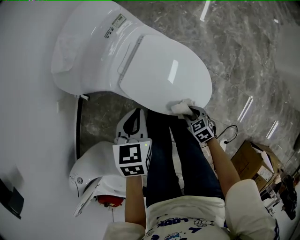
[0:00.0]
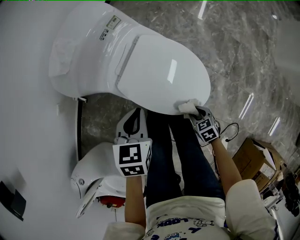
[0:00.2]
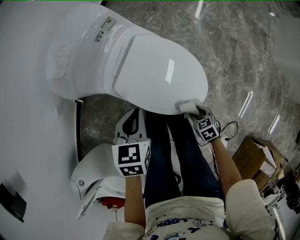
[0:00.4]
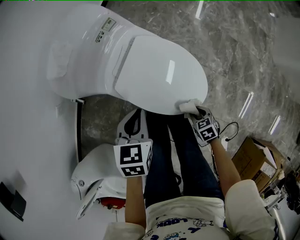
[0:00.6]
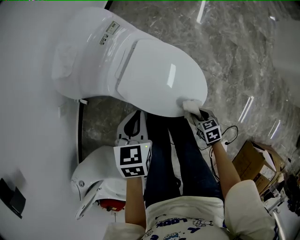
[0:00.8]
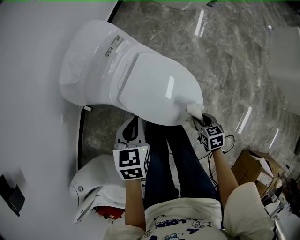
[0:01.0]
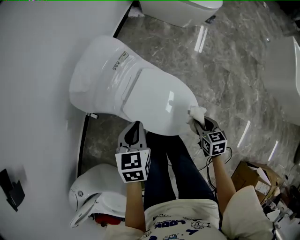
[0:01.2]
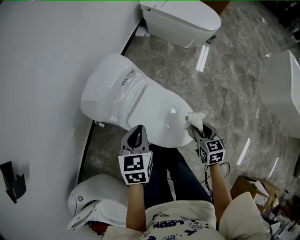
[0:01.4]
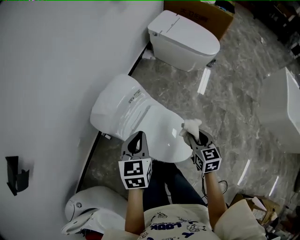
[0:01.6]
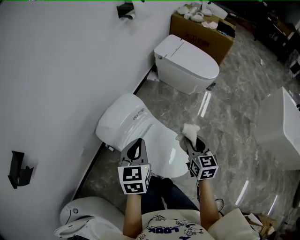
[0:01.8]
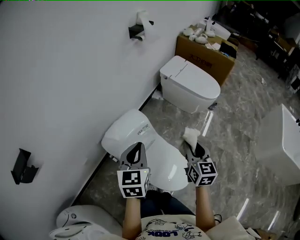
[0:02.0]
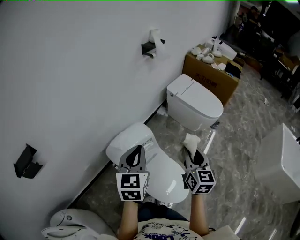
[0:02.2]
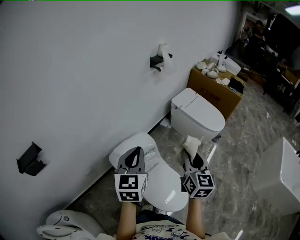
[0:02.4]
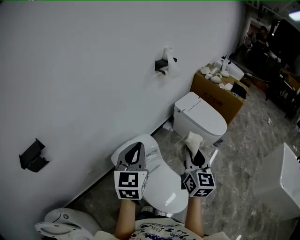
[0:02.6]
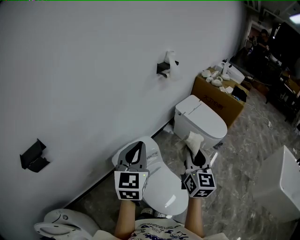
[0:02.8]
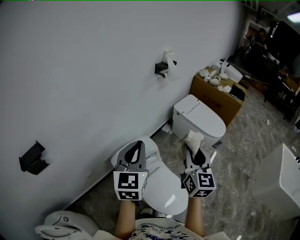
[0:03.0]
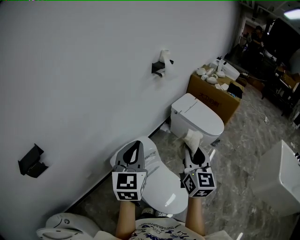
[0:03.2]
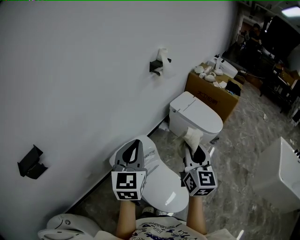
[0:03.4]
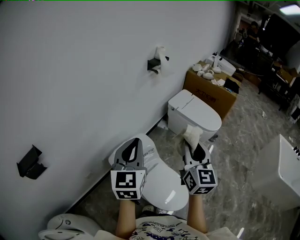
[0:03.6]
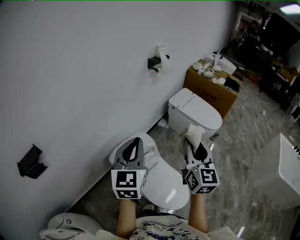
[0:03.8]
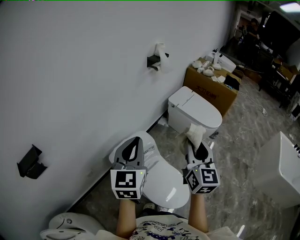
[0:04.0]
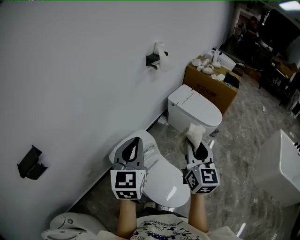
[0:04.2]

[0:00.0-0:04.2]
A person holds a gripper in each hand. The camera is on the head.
0:00.0 to 0:01.4: The left gripper travels upward by about 15 cm, while the right gripper travels upward by roughly 25 cm, and changes its angle by approximately 30 degrees.
0:01.4 to 0:02.8: Both grippers travel together upward, roughly 40 cm. The left gripper angles its fingers upward, by roughly 40 degrees. The right gripper tips its fingers upward by about 50 degrees.
0:02.8 to 0:04.2: The grippers make only small movements.

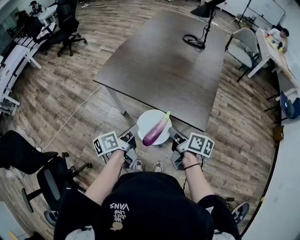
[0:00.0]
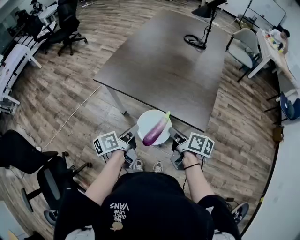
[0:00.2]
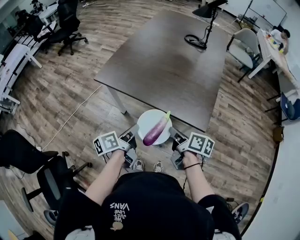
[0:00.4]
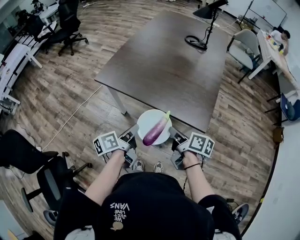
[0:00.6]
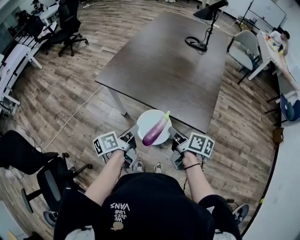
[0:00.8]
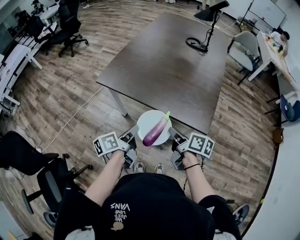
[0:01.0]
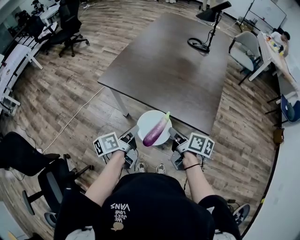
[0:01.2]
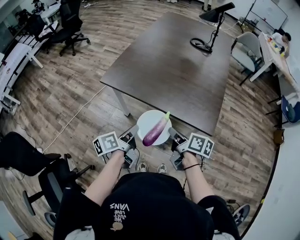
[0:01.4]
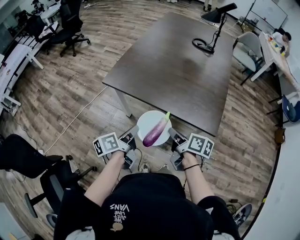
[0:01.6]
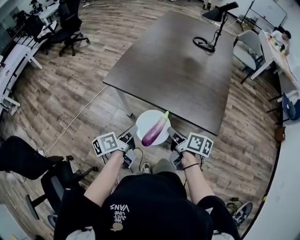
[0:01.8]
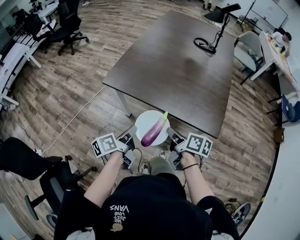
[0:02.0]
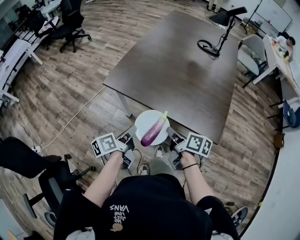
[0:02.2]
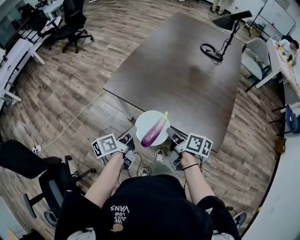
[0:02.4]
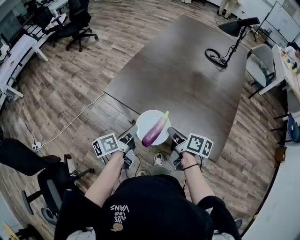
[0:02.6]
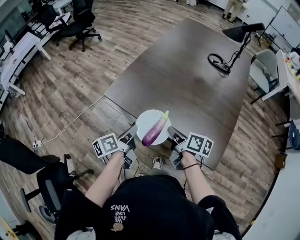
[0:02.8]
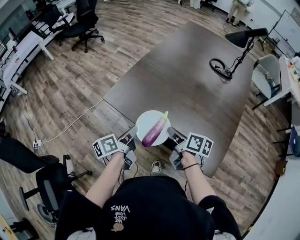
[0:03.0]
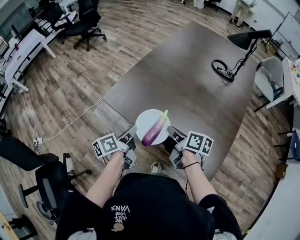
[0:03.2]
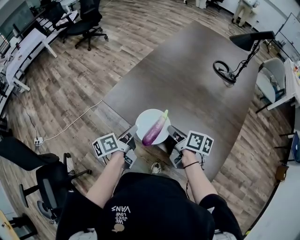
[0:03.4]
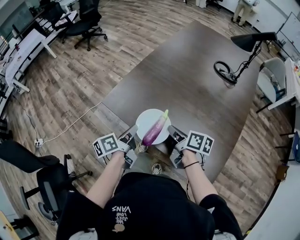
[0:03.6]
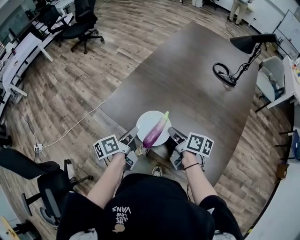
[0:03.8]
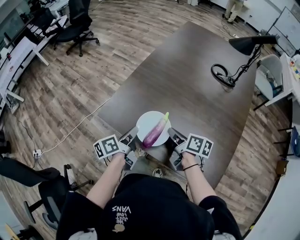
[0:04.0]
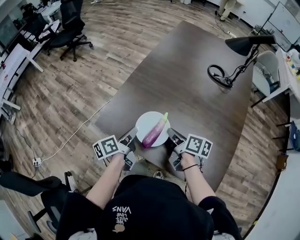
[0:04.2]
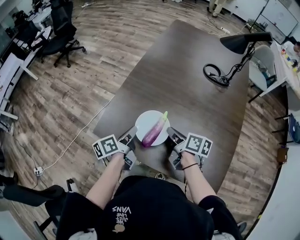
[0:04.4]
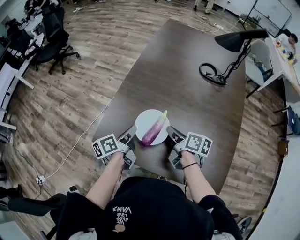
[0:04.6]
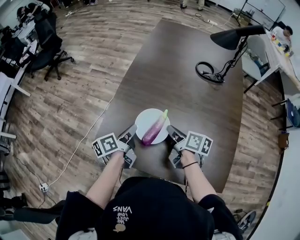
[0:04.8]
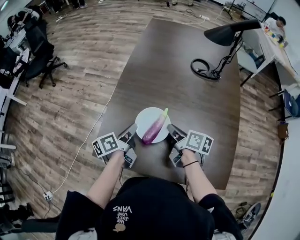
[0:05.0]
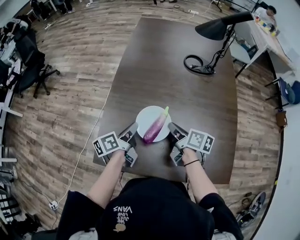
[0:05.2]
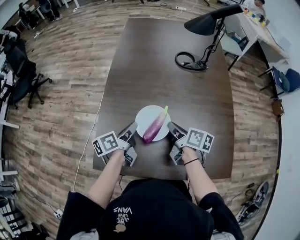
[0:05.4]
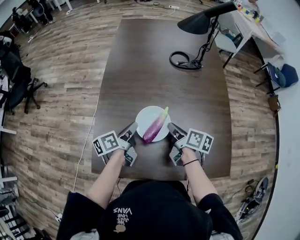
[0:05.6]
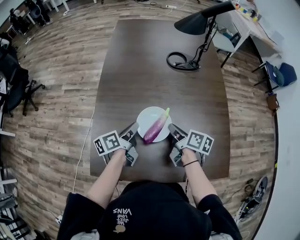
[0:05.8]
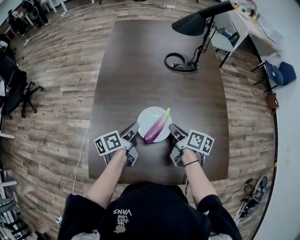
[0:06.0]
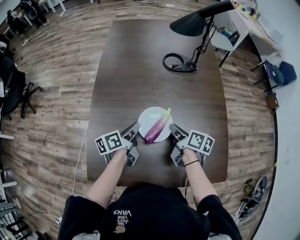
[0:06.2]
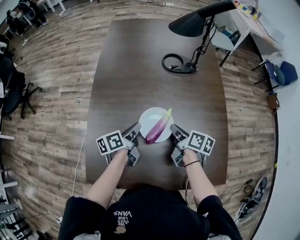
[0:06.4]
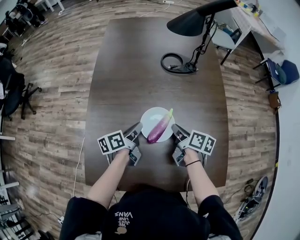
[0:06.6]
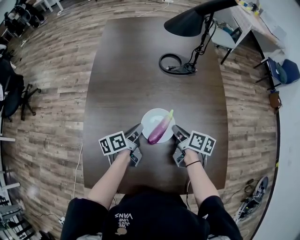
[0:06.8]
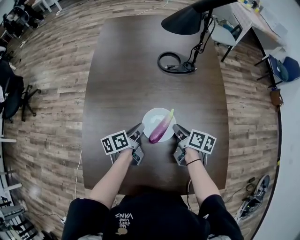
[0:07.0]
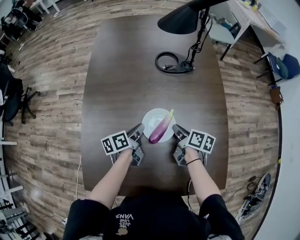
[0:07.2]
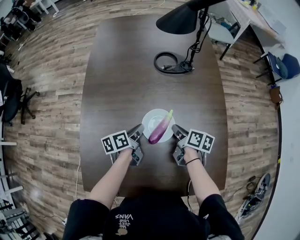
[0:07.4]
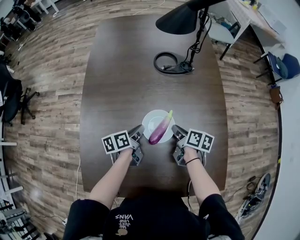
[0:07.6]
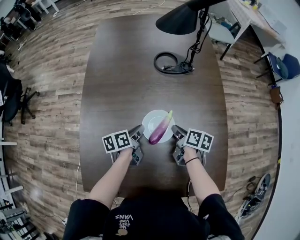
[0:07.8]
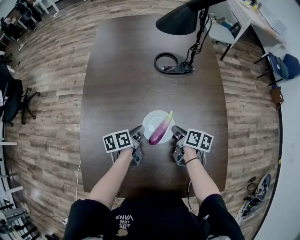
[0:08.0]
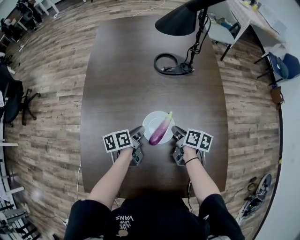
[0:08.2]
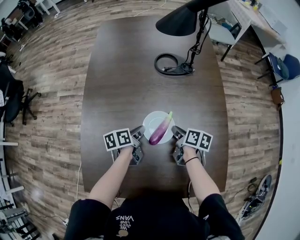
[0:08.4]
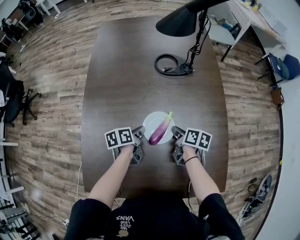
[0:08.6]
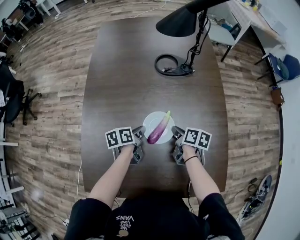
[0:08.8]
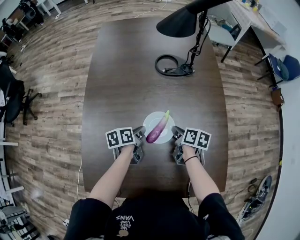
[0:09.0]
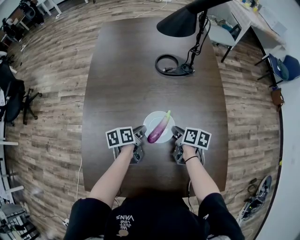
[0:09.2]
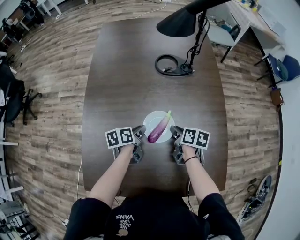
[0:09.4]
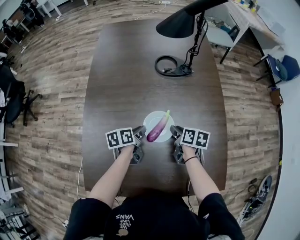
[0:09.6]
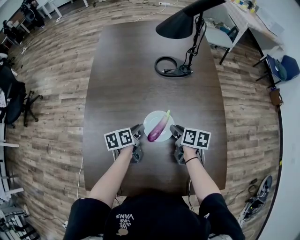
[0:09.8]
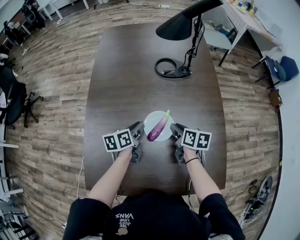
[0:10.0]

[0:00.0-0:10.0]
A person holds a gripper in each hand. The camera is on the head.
0:00.0 to 0:01.4: Both grippers move to the left, roughly 5 cm.
0:01.4 to 0:02.8: The grippers both shift forward by some 15 cm.
0:02.8 to 0:04.2: The grippers both shift forward by roughly 15 cm.
0:04.2 to 0:05.8: The left gripper shifts by about 20 cm, and changes its angle by roughly 30 degrees. The right gripper changes place by about 15 cm, and changes its angle by some 30 degrees.
0:05.8 to 0:07.2: The two grippers go roughly 15 cm forward, to the right and downward.
0:07.2 to 0:08.6: There are only small adjustments of the grippers.
0:08.6 to 0:10.0: The two grippers go approximately 5 cm upward.

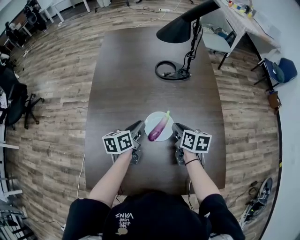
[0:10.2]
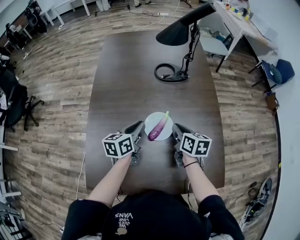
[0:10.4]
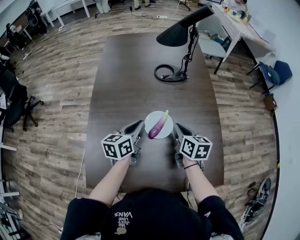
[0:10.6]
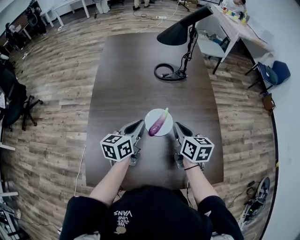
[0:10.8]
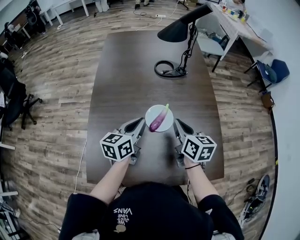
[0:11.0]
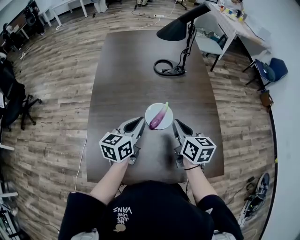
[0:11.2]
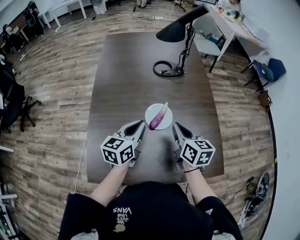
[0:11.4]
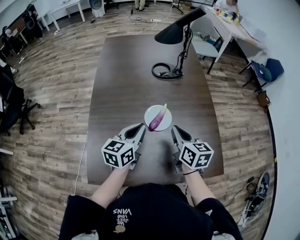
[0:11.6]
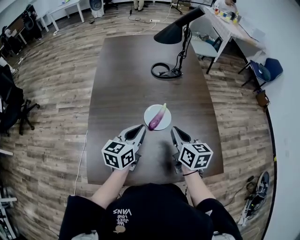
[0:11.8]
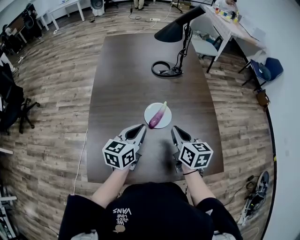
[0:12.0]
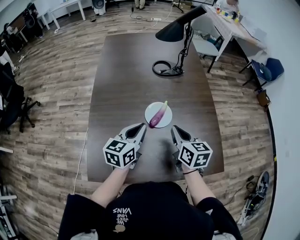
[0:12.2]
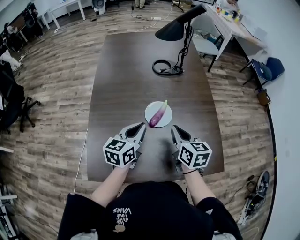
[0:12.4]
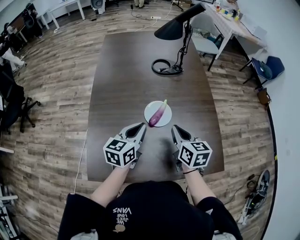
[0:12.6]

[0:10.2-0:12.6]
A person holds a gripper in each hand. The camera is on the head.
0:10.2 to 0:11.4: The two grippers go about 15 cm upward and backward. The left gripper rotates some 30 degrees.
0:11.4 to 0:12.6: The grippers make only small movements.

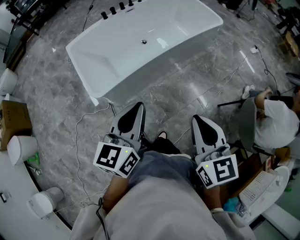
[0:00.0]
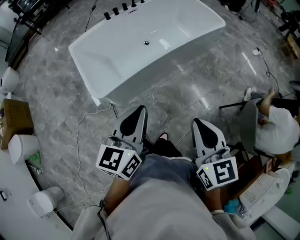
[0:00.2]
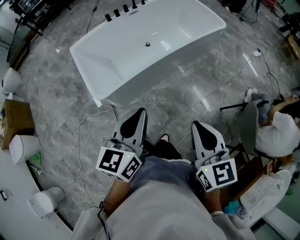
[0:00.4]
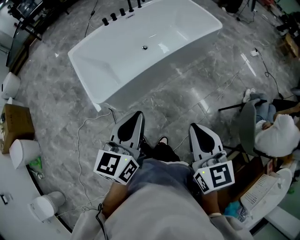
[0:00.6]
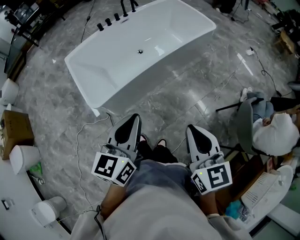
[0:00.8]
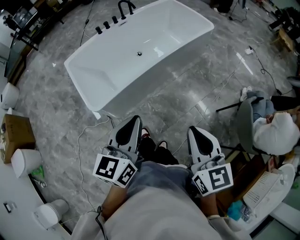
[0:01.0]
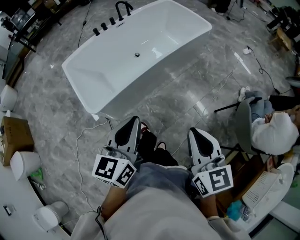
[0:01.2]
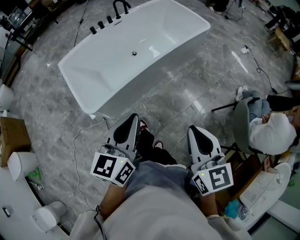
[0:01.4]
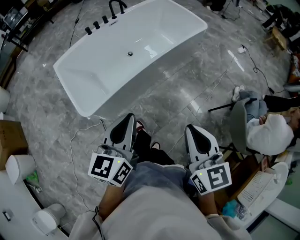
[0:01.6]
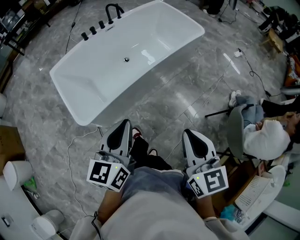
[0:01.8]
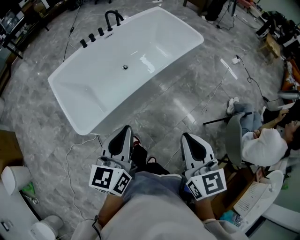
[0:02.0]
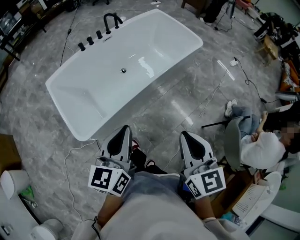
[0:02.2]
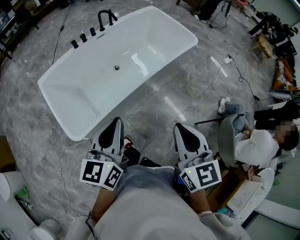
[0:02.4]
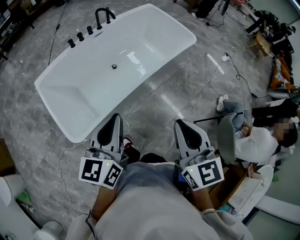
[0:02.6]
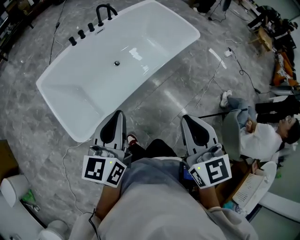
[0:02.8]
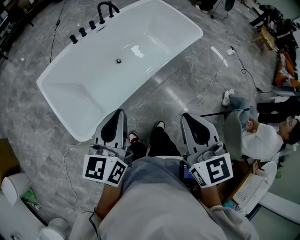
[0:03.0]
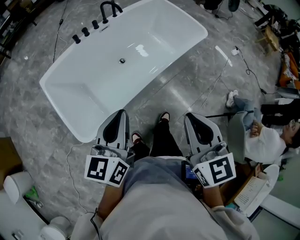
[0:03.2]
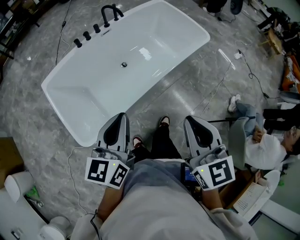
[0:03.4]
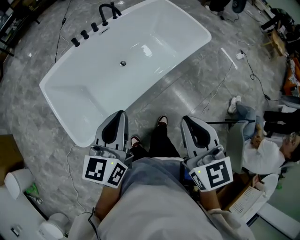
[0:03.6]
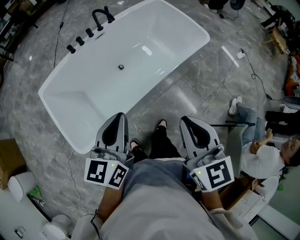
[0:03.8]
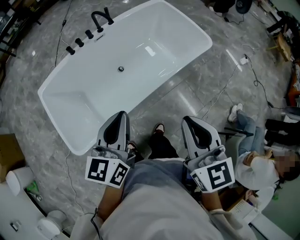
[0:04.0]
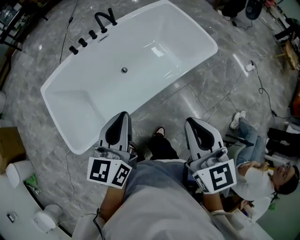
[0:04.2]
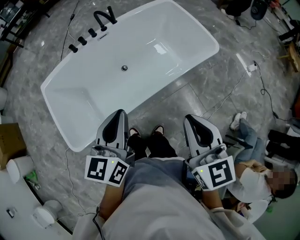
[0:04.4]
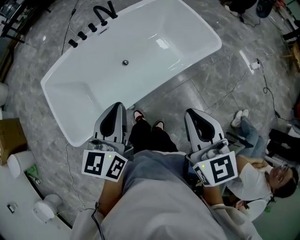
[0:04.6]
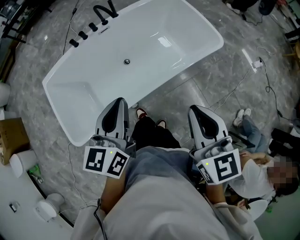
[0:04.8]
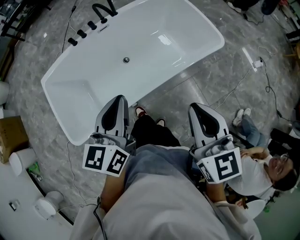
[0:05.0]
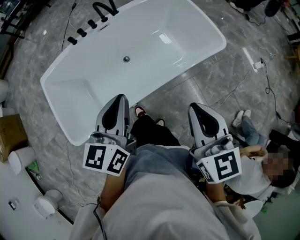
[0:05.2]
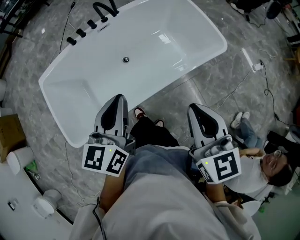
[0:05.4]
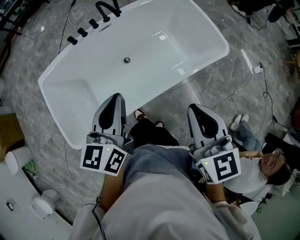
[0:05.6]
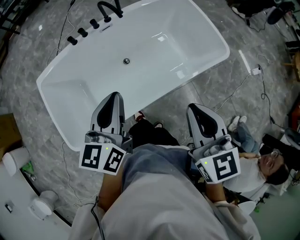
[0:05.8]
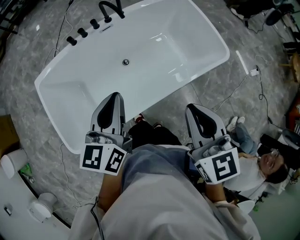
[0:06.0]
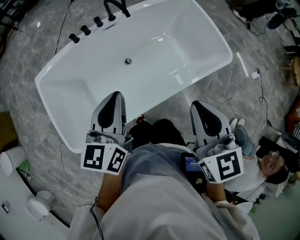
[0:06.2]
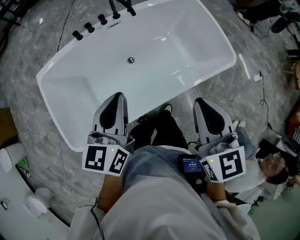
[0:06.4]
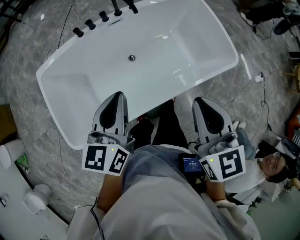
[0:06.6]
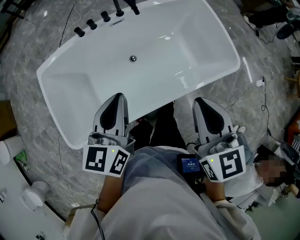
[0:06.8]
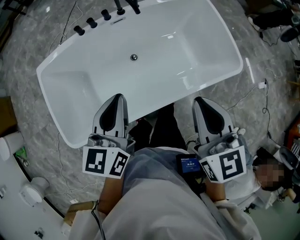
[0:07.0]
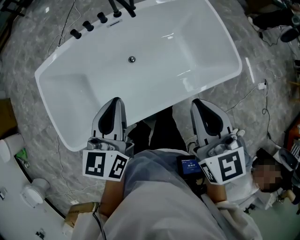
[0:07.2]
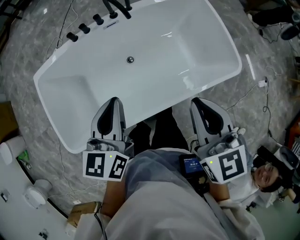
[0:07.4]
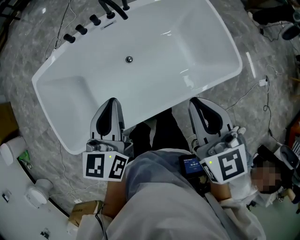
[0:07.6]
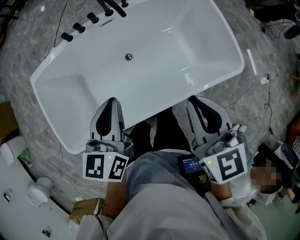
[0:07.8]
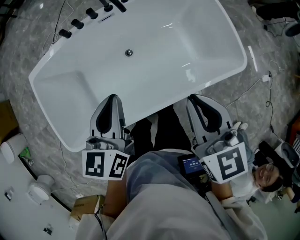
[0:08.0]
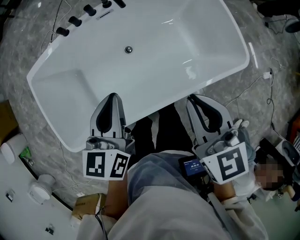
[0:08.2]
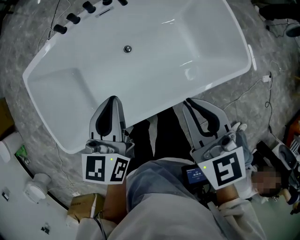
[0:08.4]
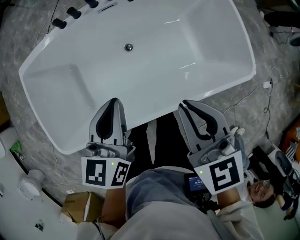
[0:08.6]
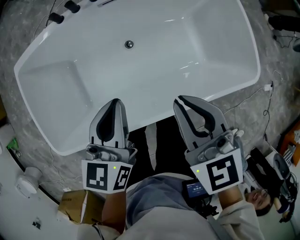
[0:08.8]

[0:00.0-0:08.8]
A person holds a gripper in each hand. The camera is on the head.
0:00.0 to 0:01.4: The grippers stay close to where they were, moving slightly.
0:01.4 to 0:03.0: The right gripper goes some 20 cm forward. The left gripper shifts about 25 cm forward and to the left.
0:03.0 to 0:04.4: Both grippers move forward and to the right, some 25 cm.
0:04.4 to 0:05.8: The grippers both shift forward by about 15 cm.
0:05.8 to 0:07.4: The right gripper is displaced forward by about 15 cm; the left gripper moves forward, about 10 cm.
0:07.4 to 0:08.8: The right gripper is displaced downward and forward by approximately 15 cm. Meanwhile the left gripper goes about 15 cm downward.
